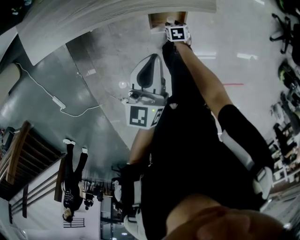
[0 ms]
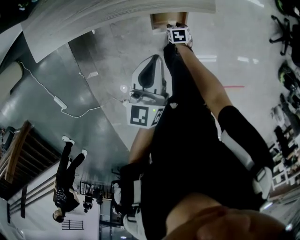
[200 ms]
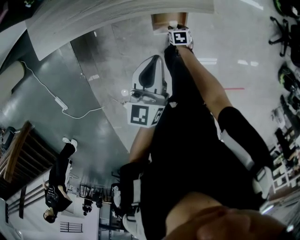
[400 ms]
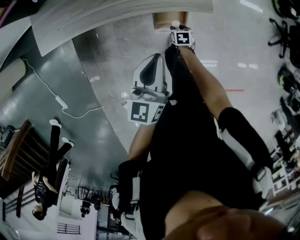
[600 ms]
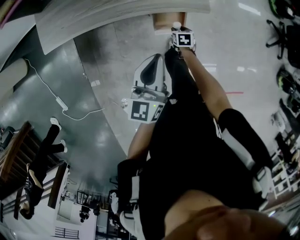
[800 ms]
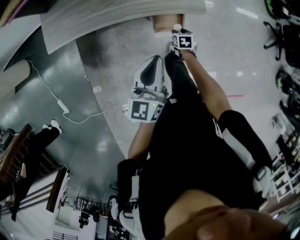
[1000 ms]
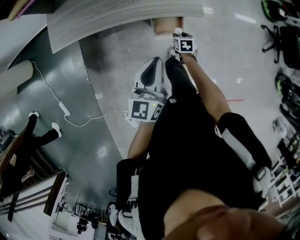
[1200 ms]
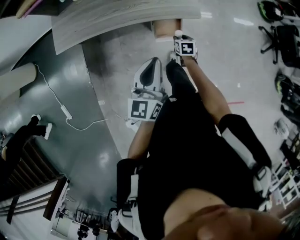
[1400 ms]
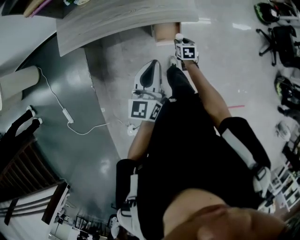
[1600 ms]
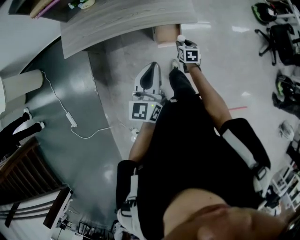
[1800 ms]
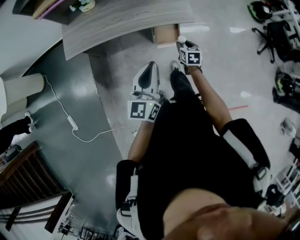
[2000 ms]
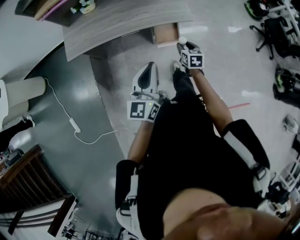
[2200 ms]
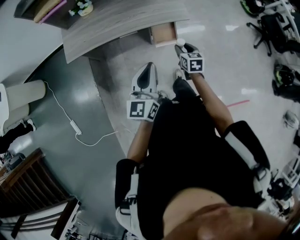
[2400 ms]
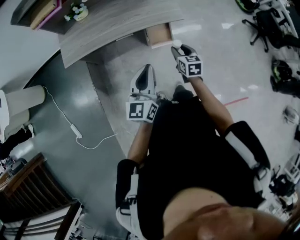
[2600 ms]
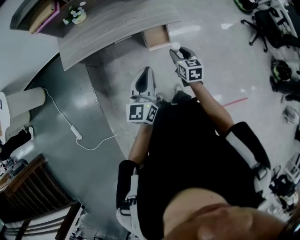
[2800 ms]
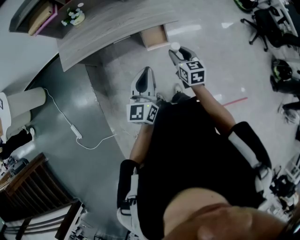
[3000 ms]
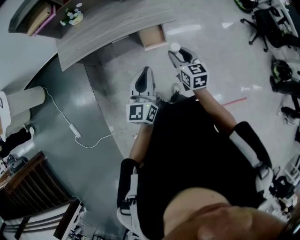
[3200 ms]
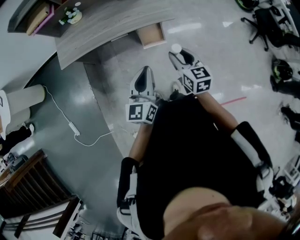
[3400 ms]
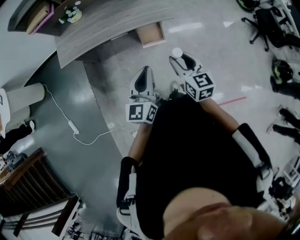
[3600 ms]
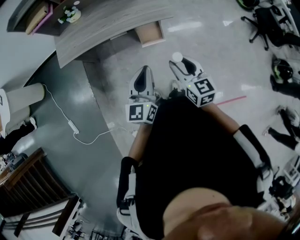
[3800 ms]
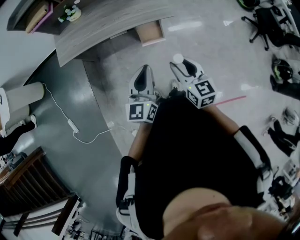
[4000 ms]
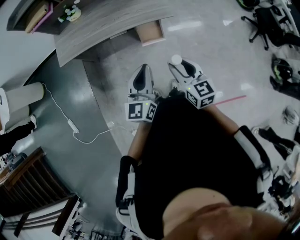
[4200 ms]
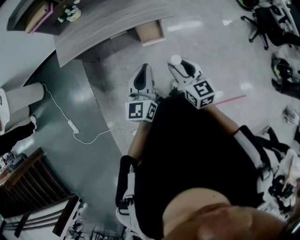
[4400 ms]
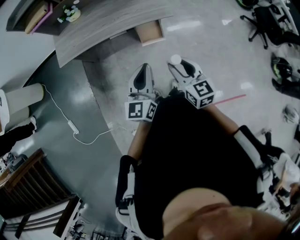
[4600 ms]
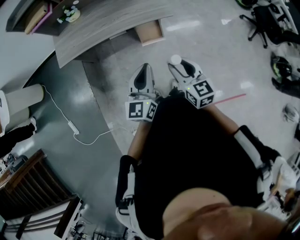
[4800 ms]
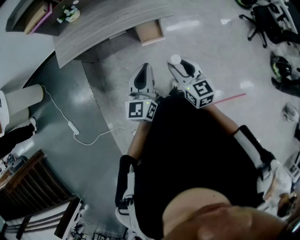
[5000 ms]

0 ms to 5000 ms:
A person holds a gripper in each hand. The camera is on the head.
0 ms to 1600 ms: The right gripper shifts roughly 25 cm upward, and changes its angle by approximately 20 degrees, while the left gripper goes roughly 15 cm upward.
1600 ms to 3400 ms: The right gripper travels upward and backward by approximately 35 cm, and turns by about 30 degrees. Meanwhile the left gripper travels backward and to the right by about 10 cm.
3400 ms to 5000 ms: The right gripper shifts roughly 5 cm backward.

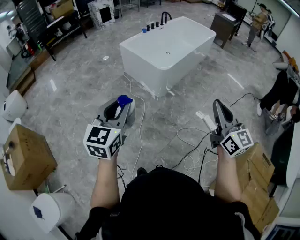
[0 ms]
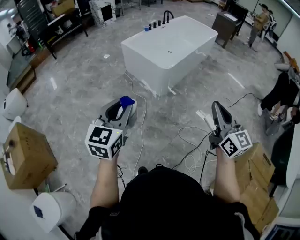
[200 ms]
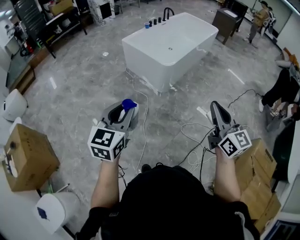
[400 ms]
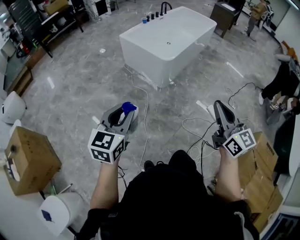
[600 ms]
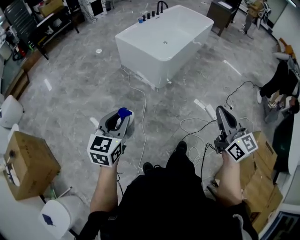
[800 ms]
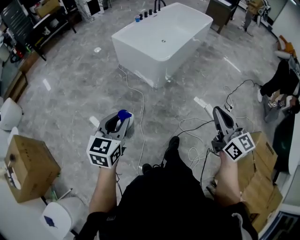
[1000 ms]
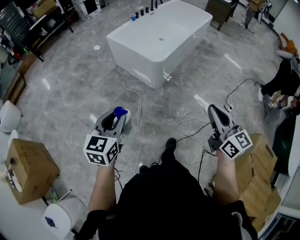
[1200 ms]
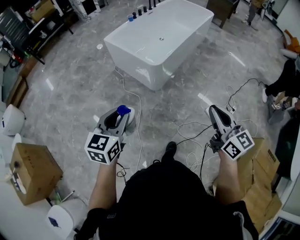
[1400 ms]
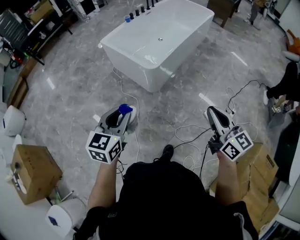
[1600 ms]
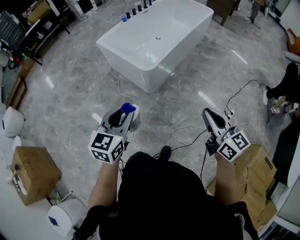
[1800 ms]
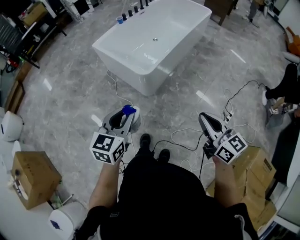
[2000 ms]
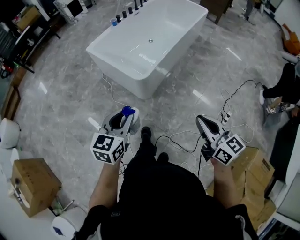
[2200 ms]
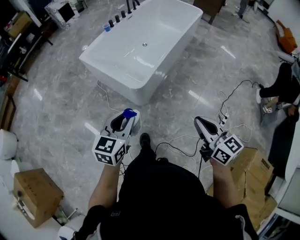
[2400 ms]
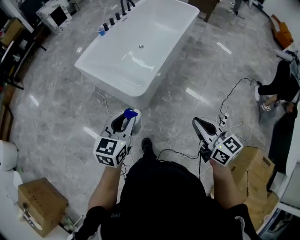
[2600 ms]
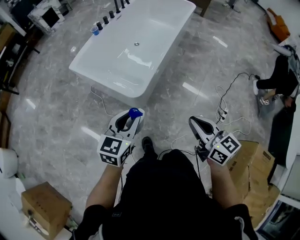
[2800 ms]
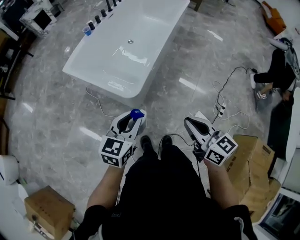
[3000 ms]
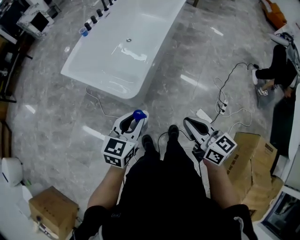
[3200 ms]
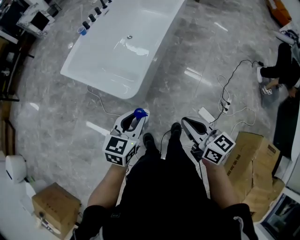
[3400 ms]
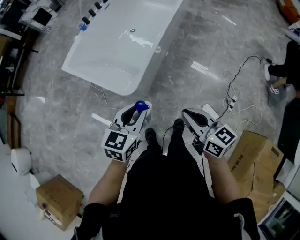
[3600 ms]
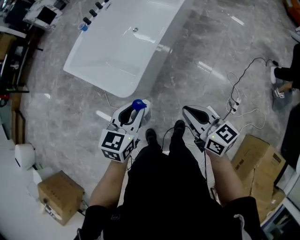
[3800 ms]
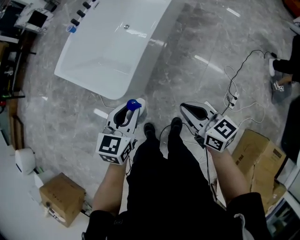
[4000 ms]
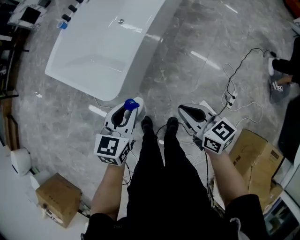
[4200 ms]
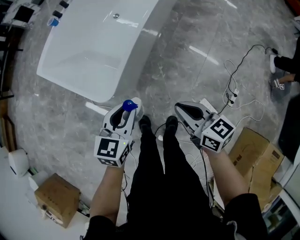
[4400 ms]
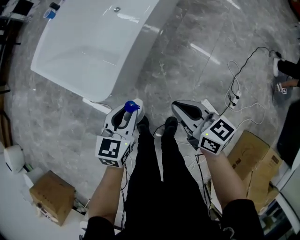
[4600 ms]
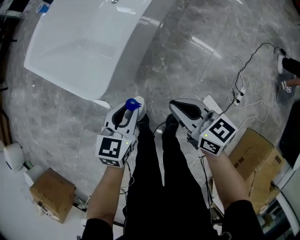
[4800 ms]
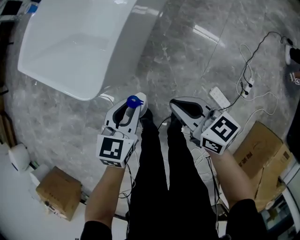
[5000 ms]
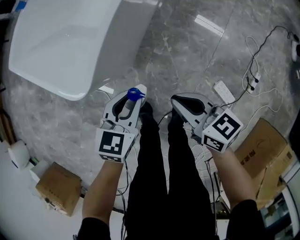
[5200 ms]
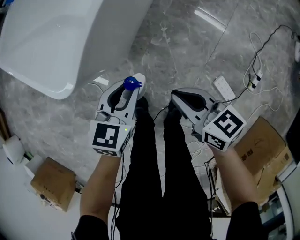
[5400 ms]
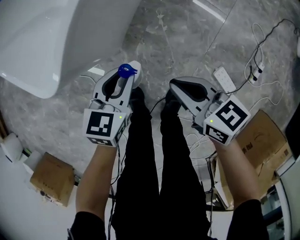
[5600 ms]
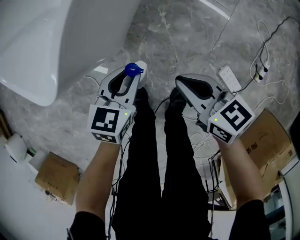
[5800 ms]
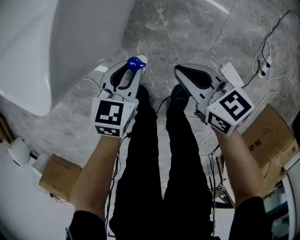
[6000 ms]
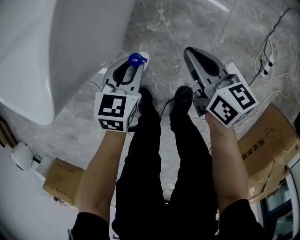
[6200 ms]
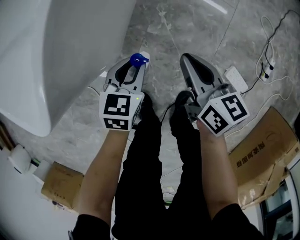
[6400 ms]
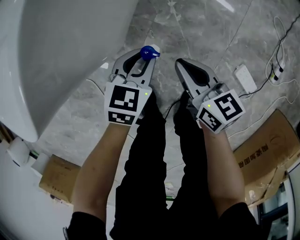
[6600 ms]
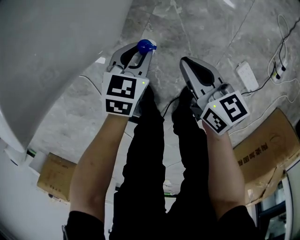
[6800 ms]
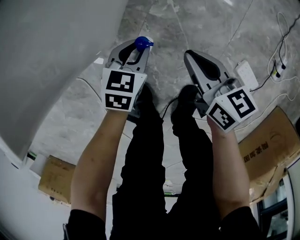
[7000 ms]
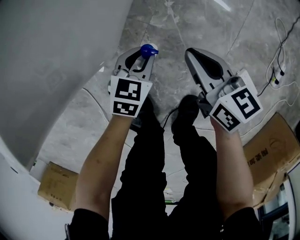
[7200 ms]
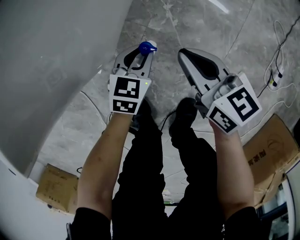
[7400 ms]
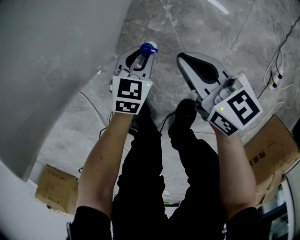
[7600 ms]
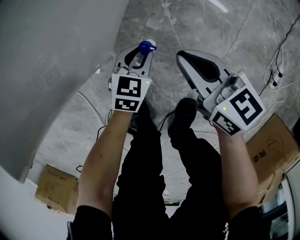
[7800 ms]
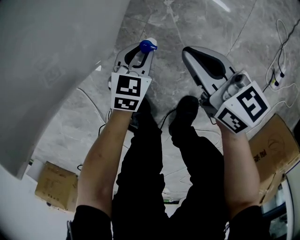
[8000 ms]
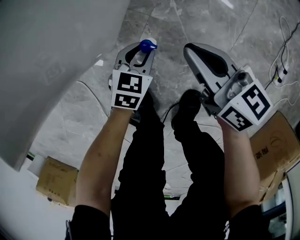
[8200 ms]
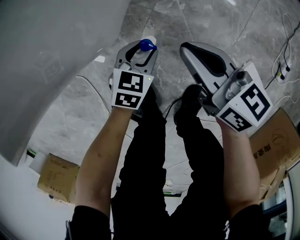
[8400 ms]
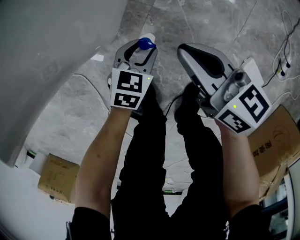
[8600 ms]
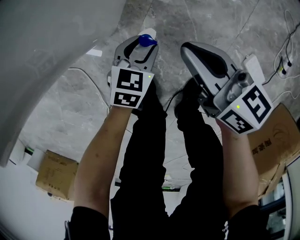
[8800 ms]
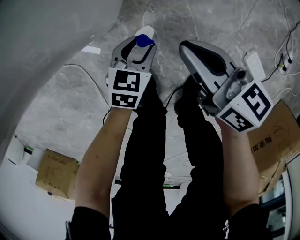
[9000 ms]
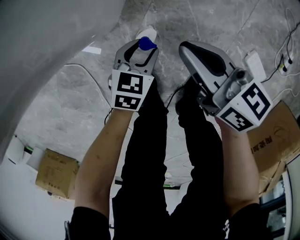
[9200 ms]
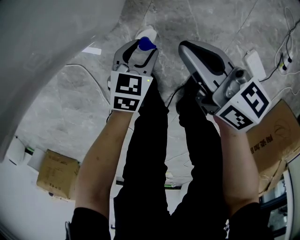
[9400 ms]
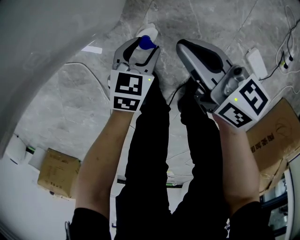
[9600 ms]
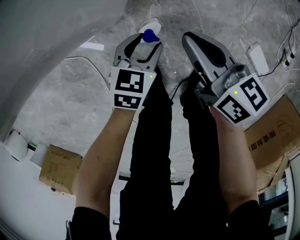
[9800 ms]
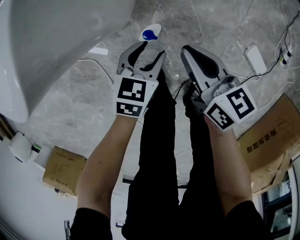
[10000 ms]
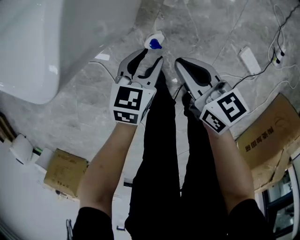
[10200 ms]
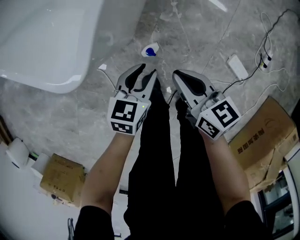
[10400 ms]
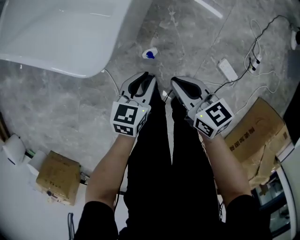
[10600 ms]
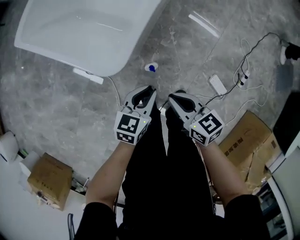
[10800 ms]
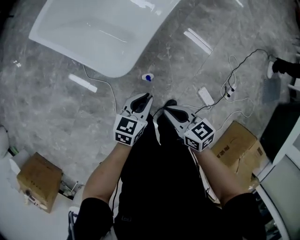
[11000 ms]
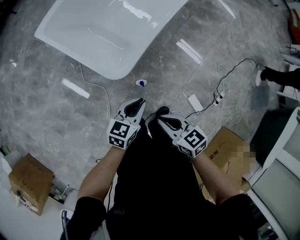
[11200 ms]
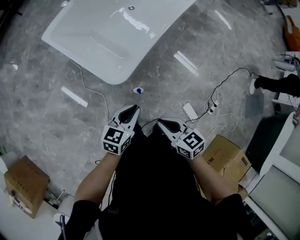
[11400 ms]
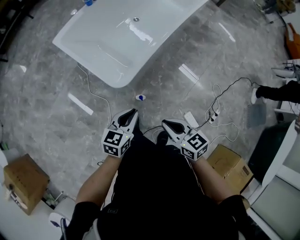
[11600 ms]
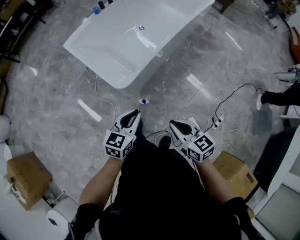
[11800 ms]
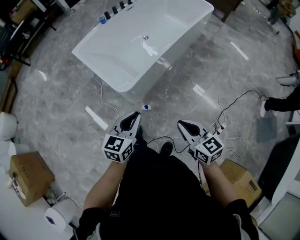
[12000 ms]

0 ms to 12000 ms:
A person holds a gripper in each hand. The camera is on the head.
0 ms to 1600 ms: The two grippers go some 25 cm forward, to the right and downward.
1600 ms to 3000 ms: The grippers both shift forward by some 30 cm.
3000 ms to 4400 ms: The right gripper goes some 30 cm downward, to the right and forward. The left gripper moves to the right, downward and forward, some 30 cm.
4400 ms to 6000 ms: The grippers both shift downward by roughly 40 cm.
6000 ms to 7600 ms: The left gripper travels downward by about 25 cm, while the right gripper goes about 15 cm downward.
7600 ms to 9000 ms: The grippers both shift backward by some 10 cm. The left gripper opens up.
9000 ms to 10400 ms: The right gripper goes some 15 cm upward. The left gripper goes about 25 cm upward.
10400 ms to 12000 ms: Both grippers move upward, approximately 50 cm. The right gripper changes its angle by roughly 30 degrees. The left gripper swivels approximately 30 degrees, and closes up.

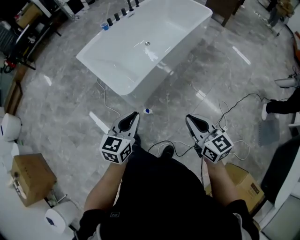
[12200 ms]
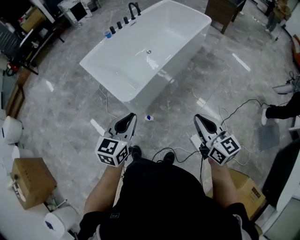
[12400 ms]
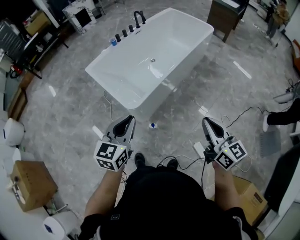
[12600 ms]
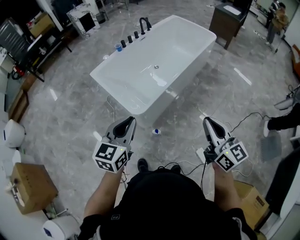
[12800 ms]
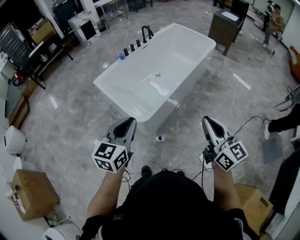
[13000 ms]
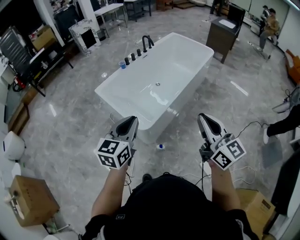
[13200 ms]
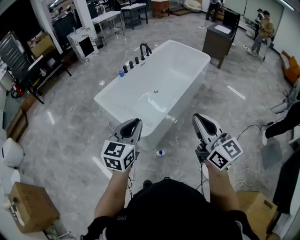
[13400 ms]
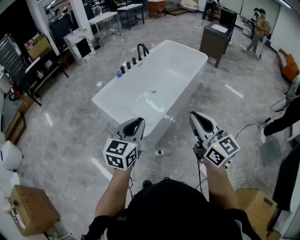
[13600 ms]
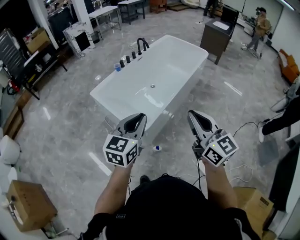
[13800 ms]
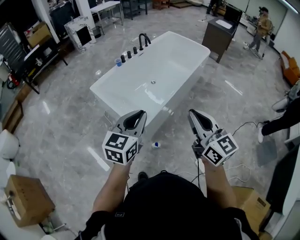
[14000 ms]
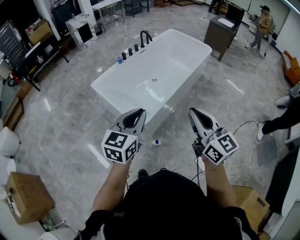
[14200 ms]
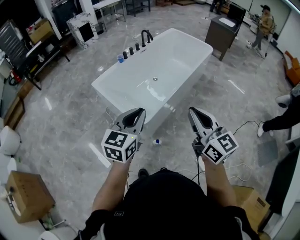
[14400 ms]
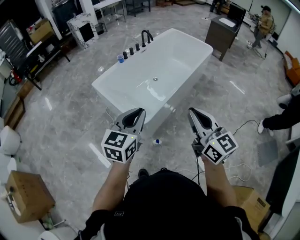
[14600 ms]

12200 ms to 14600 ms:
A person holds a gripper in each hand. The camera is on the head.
12200 ms to 13400 ms: Both grippers move upward and to the left, some 25 cm. The right gripper swivels some 30 degrees.
13400 ms to 14600 ms: The grippers stay close to where they were, moving slightly.

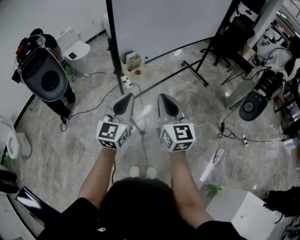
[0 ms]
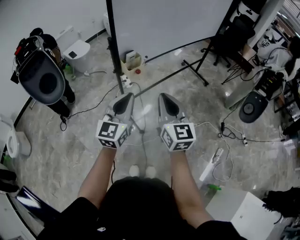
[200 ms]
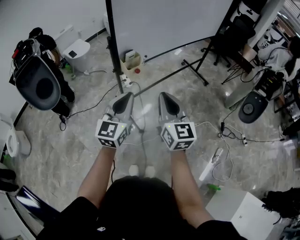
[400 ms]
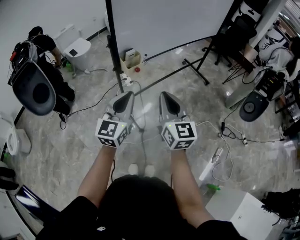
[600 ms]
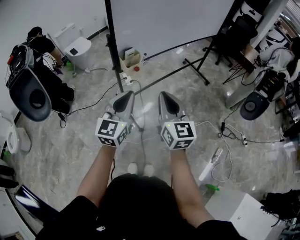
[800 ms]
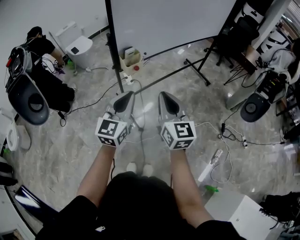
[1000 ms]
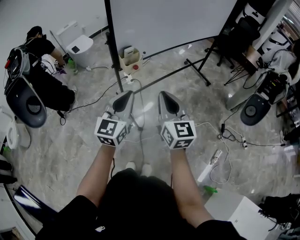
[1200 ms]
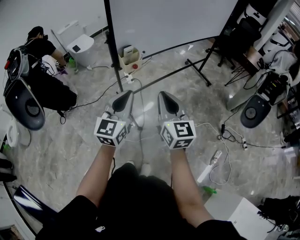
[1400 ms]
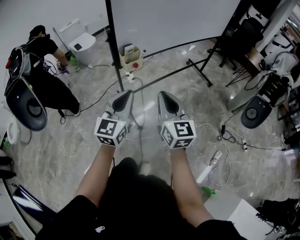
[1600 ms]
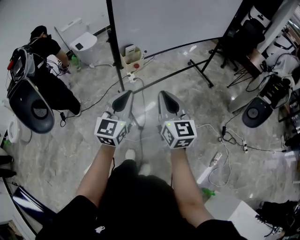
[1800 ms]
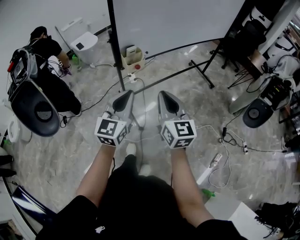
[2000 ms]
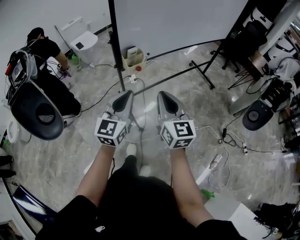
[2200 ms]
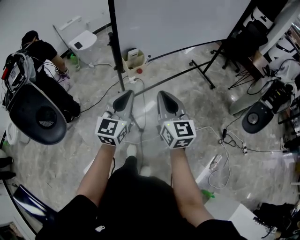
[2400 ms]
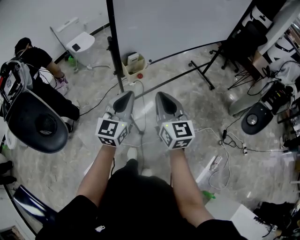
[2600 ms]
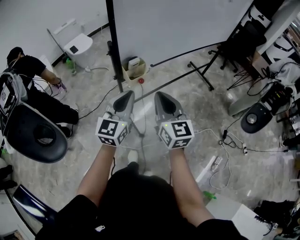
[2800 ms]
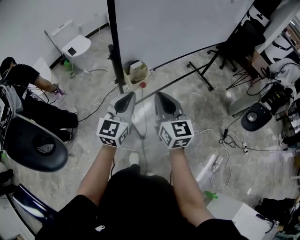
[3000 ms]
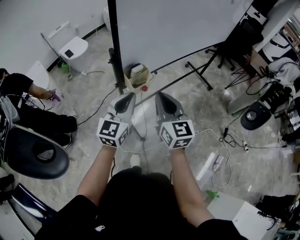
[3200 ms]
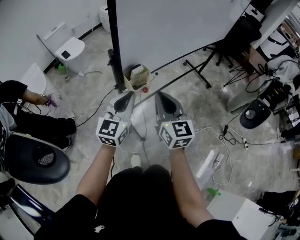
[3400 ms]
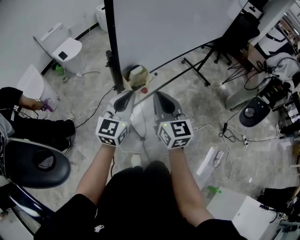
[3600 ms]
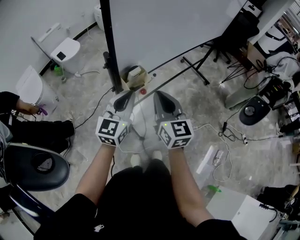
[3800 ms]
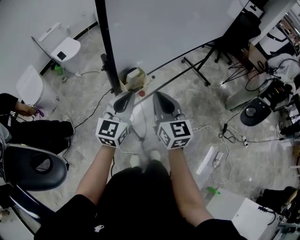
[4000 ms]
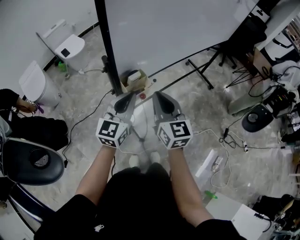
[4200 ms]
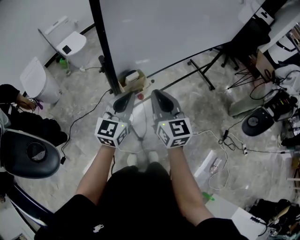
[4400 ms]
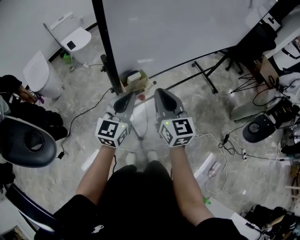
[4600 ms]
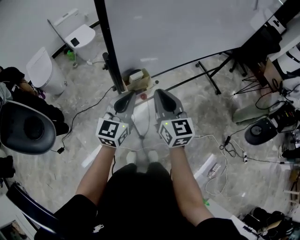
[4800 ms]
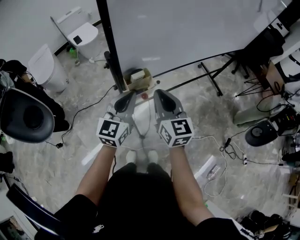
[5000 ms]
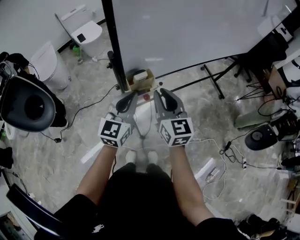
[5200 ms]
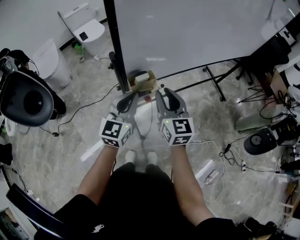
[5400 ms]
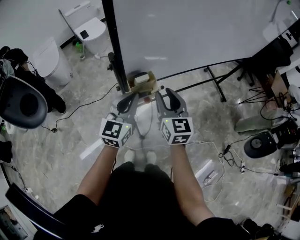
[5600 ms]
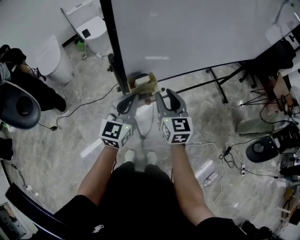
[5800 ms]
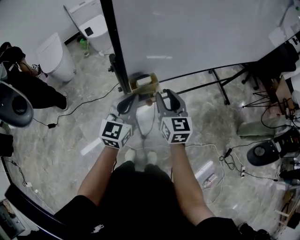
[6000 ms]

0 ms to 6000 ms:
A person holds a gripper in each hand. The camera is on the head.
0 ms to 1600 ms: There are only small adjustments of the grippers.
1600 ms to 3000 ms: The right gripper heads forward and to the left, covering some 15 cm; the left gripper heads forward, covering roughly 15 cm.
3000 ms to 4400 ms: Both grippers travel together forward, roughly 10 cm.
4400 ms to 6000 ms: The left gripper changes place by about 5 cm, while the right gripper is displaced forward and downward by approximately 10 cm, and opens.
